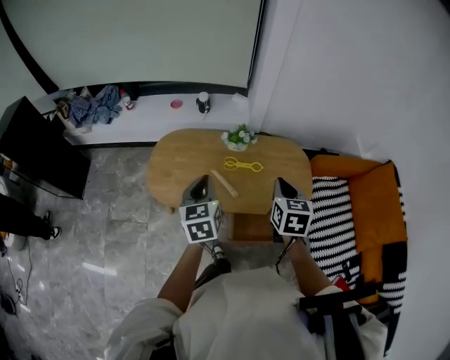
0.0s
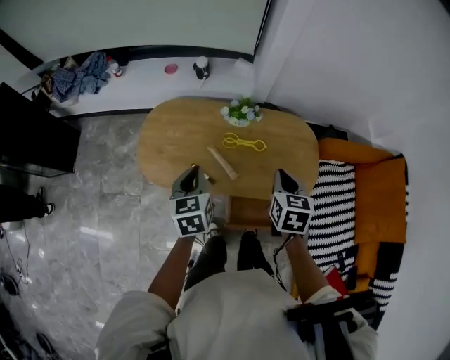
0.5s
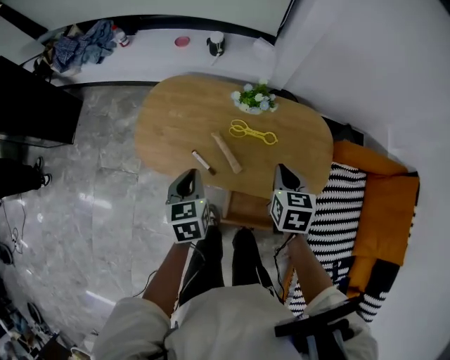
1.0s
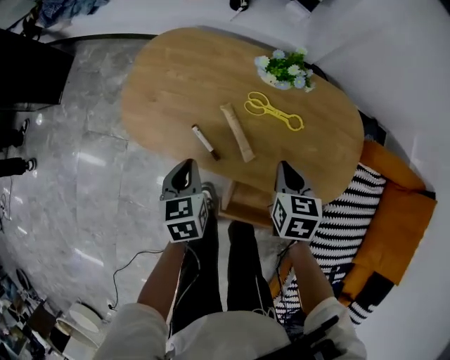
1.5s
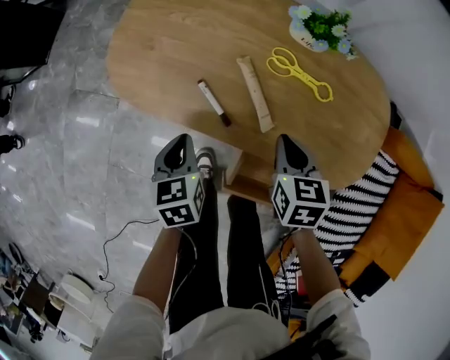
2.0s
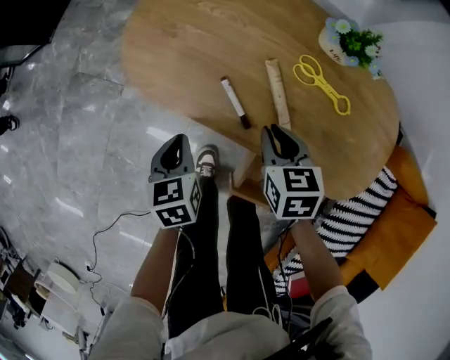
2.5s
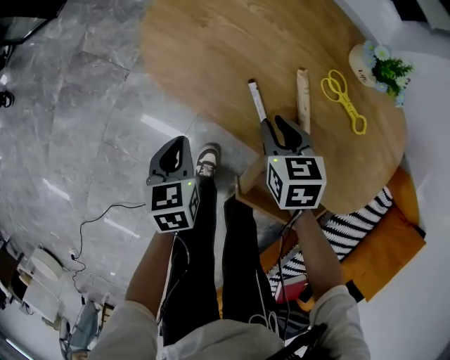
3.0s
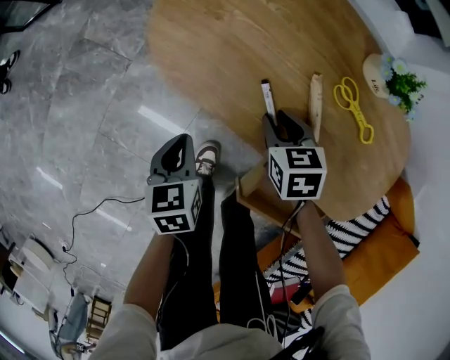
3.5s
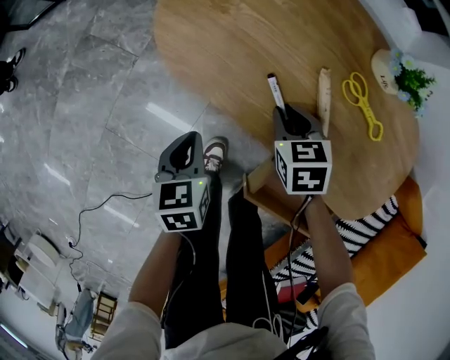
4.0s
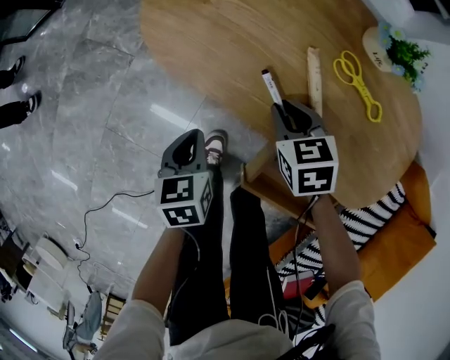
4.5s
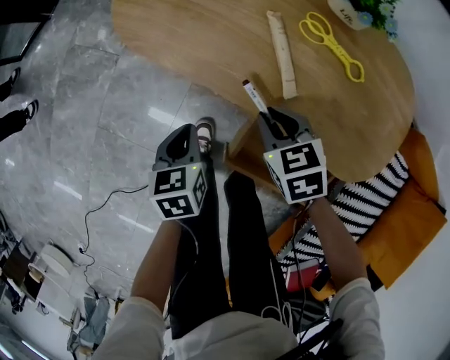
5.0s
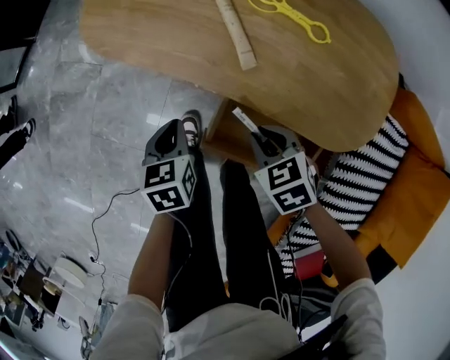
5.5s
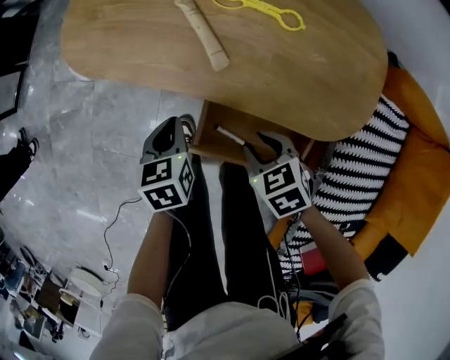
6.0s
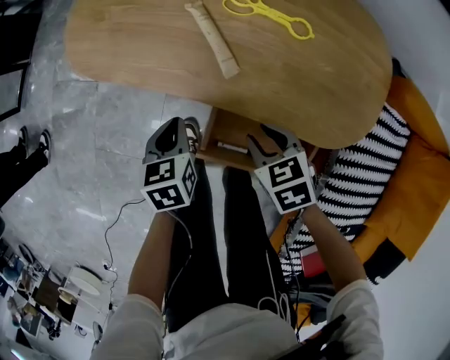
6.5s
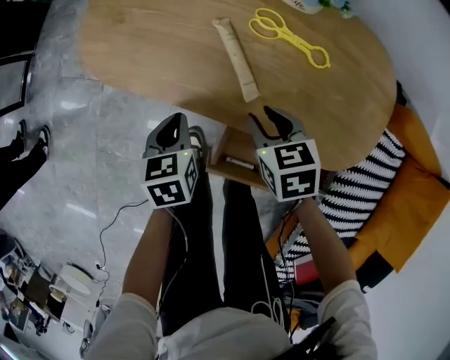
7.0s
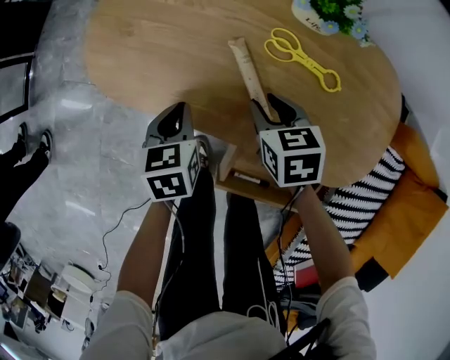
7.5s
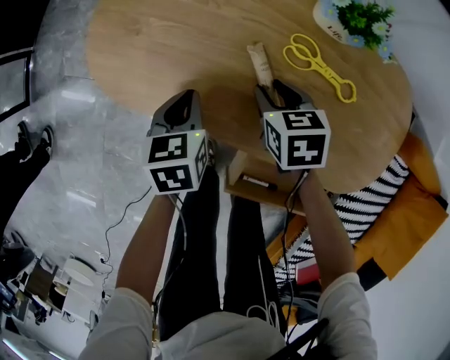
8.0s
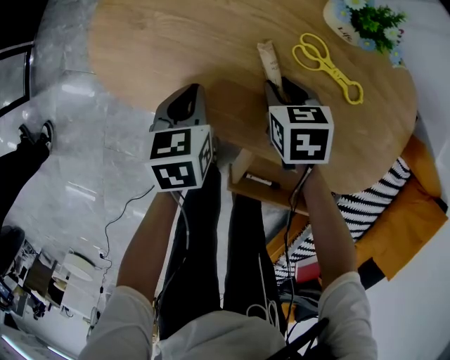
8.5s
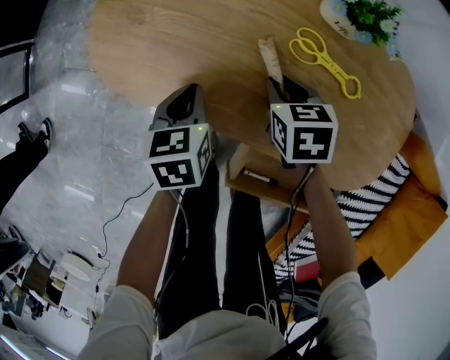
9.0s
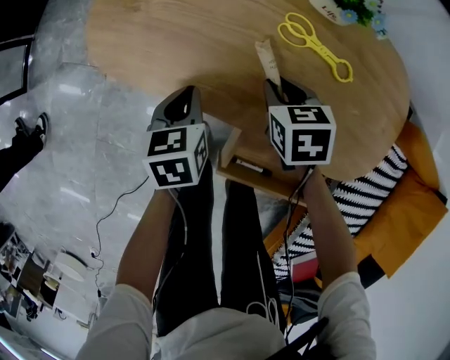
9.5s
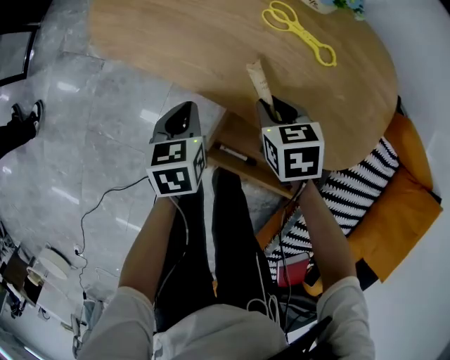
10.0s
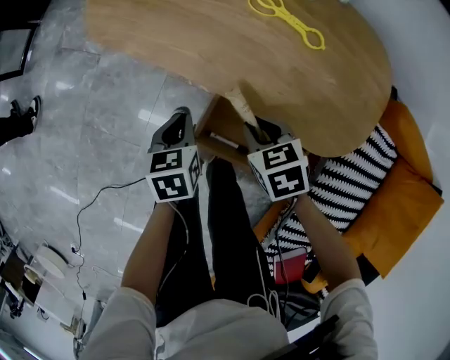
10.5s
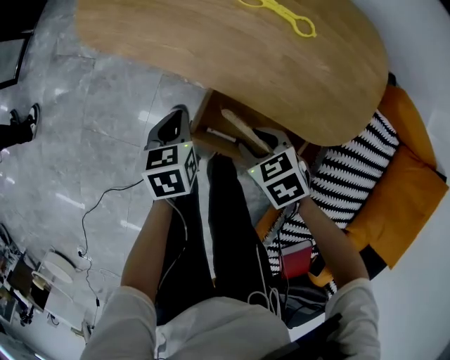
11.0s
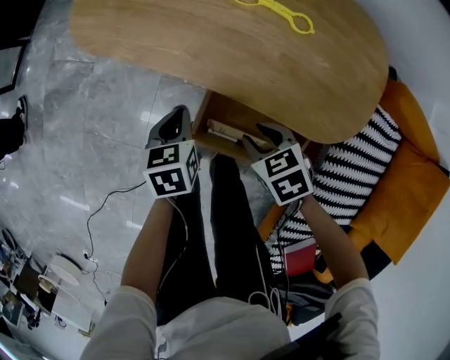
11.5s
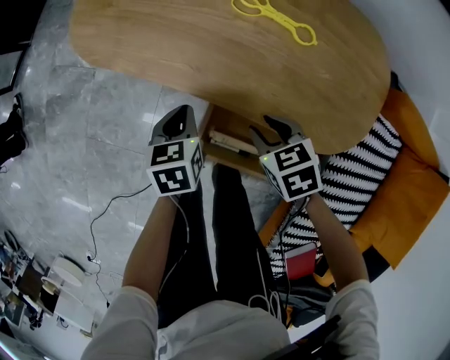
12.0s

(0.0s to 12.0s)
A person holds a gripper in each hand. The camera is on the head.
0.0s - 2.0s: Both grippers move downward, some 40 cm. The left gripper rotates approximately 30 degrees. The right gripper swivels roughly 30 degrees.
2.0s - 4.0s: The right gripper travels to the left, downward and forward by approximately 20 cm, and changes its angle by some 30 degrees; the left gripper goes roughly 15 cm to the left and downward.
4.0s - 6.0s: The right gripper moves backward and to the right, about 30 cm; the left gripper moves to the right and backward, some 20 cm.
6.0s - 8.0s: Both grippers travel together forward, about 25 cm.
8.0s - 10.0s: The grippers both shift backward by some 15 cm.
10.0s - 12.0s: The right gripper travels backward by some 10 cm.

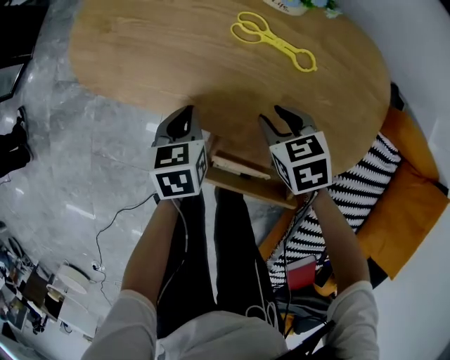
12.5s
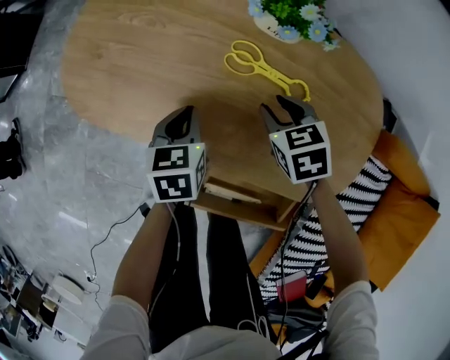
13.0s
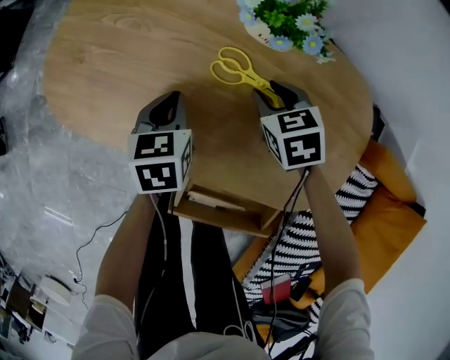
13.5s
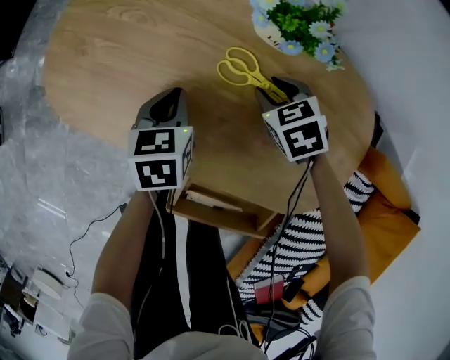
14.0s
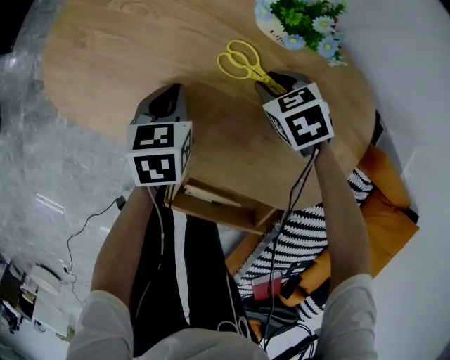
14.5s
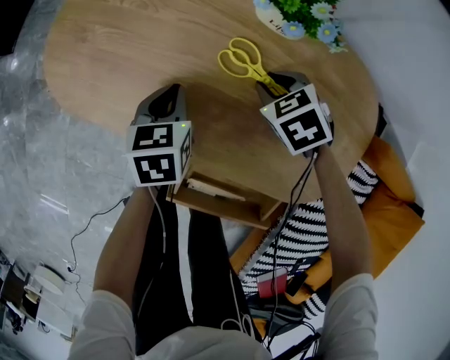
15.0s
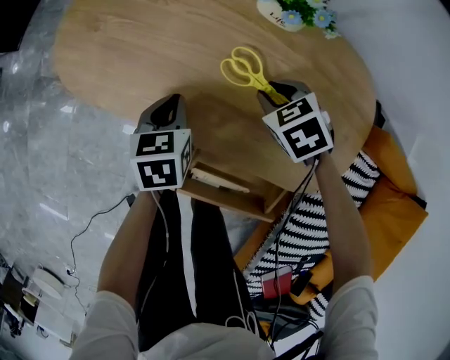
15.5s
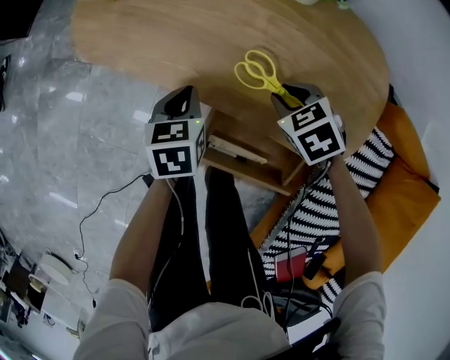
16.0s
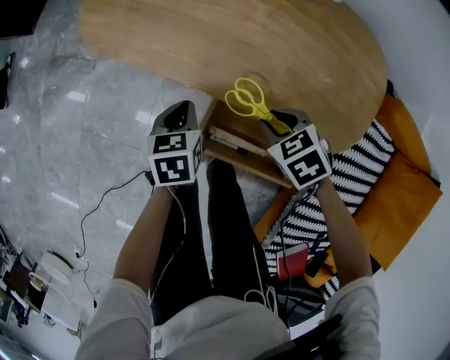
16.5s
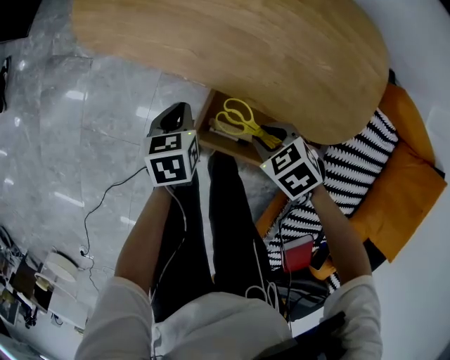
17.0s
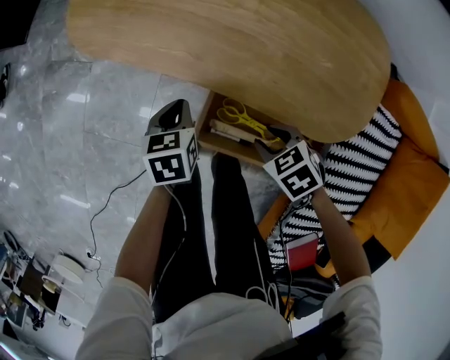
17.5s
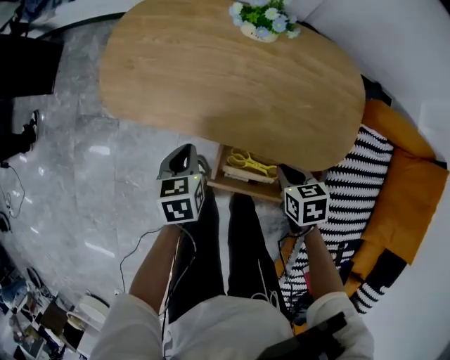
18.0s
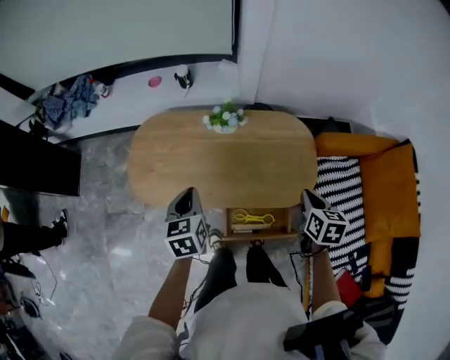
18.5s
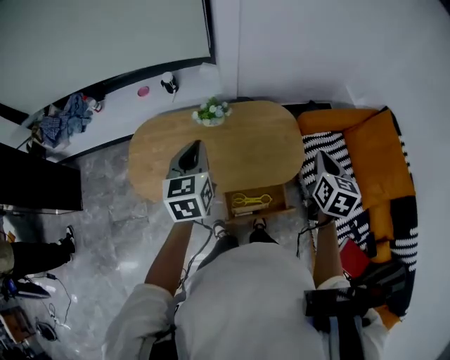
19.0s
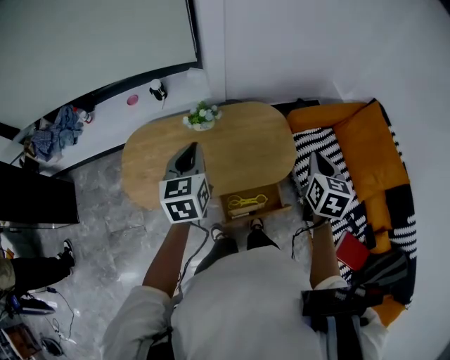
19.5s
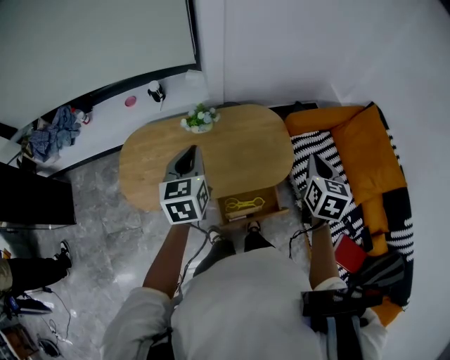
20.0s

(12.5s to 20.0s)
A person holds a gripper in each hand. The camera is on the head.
12.5s - 14.5s: The two grippers go approximately 15 cm forward.
14.5s - 16.5s: The right gripper moves backward, approximately 25 cm; the left gripper is displaced backward and to the left by some 20 cm.
16.5s - 18.0s: The right gripper ends up about 10 cm from where it was, swivels approximately 40 degrees, and closes. Meanwhile the left gripper travels upward by about 10 cm.
18.0s - 20.0s: Both grippers move upward, roughly 40 cm. The right gripper tilts its fingers about 30 degrees upward. The left gripper tilts its fingers roughly 30 degrees upward.

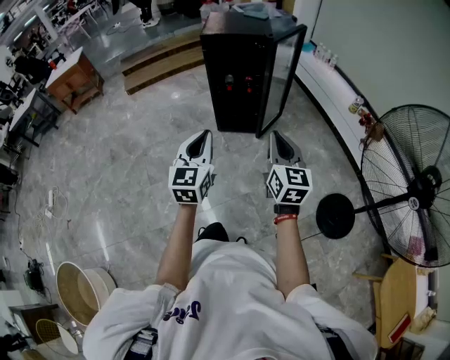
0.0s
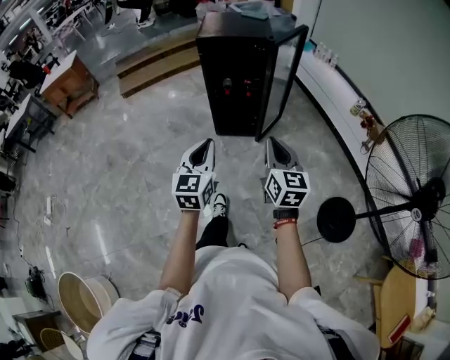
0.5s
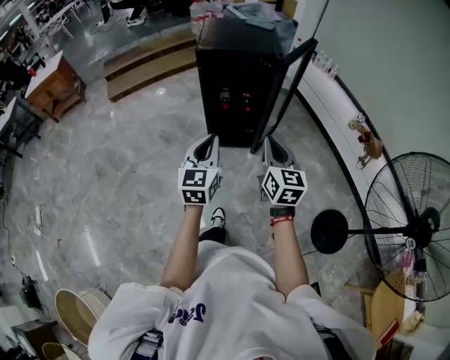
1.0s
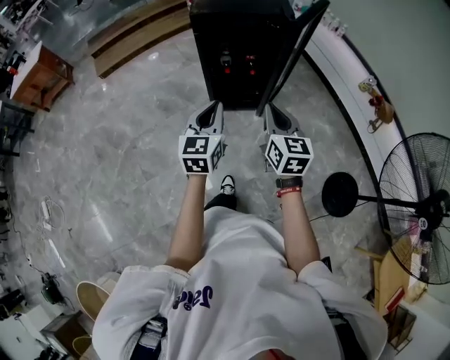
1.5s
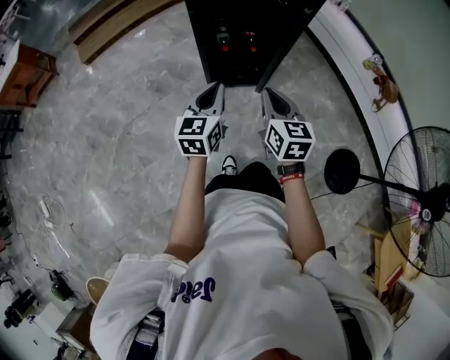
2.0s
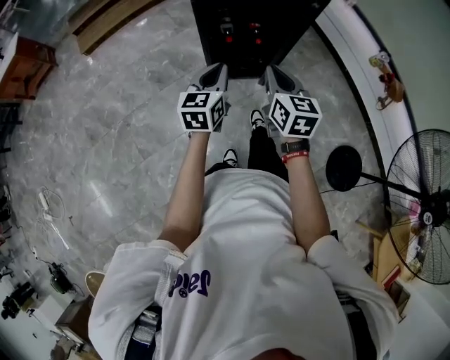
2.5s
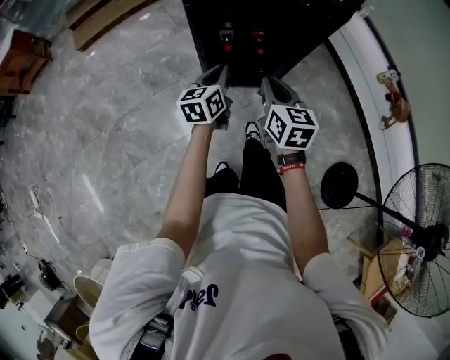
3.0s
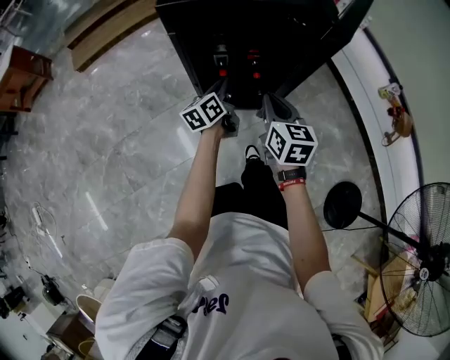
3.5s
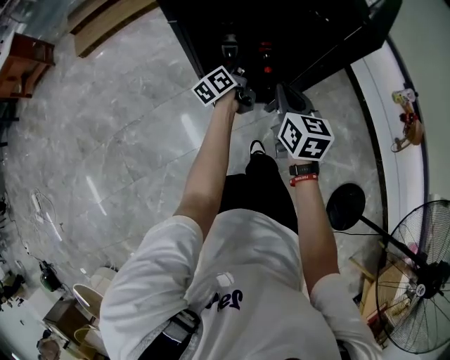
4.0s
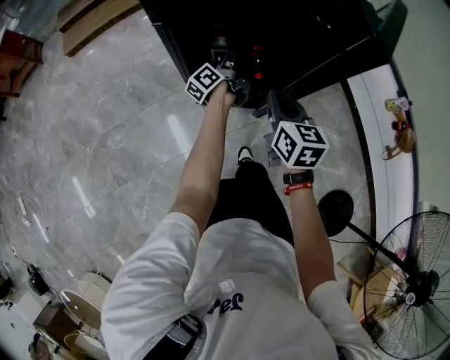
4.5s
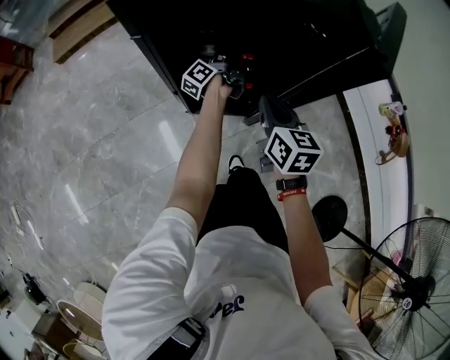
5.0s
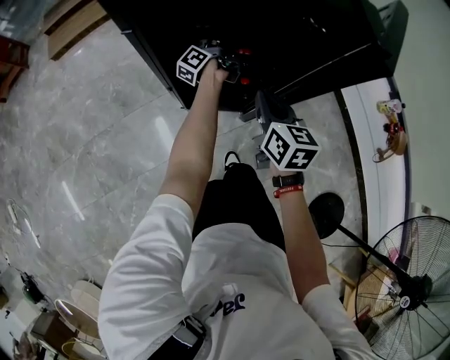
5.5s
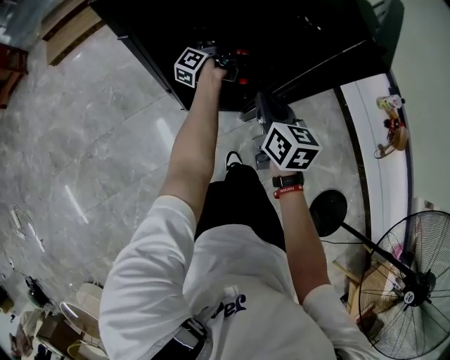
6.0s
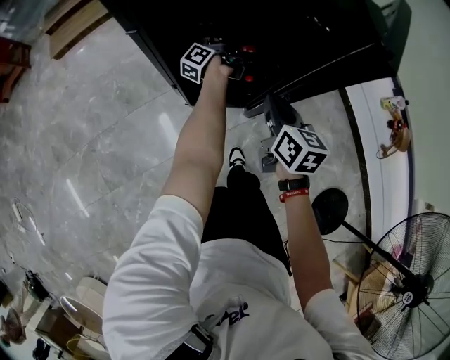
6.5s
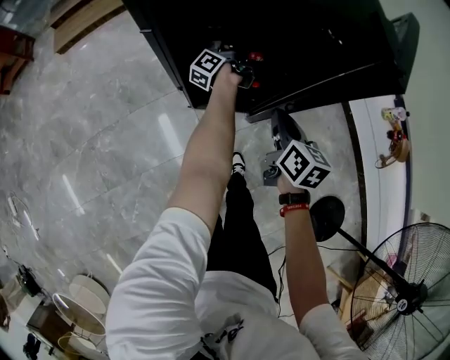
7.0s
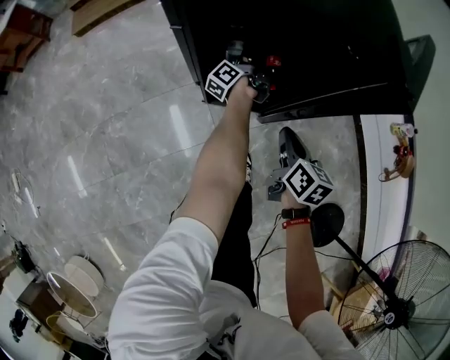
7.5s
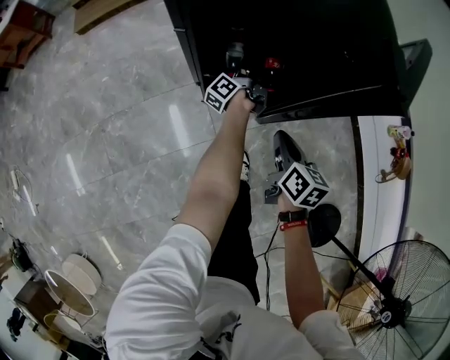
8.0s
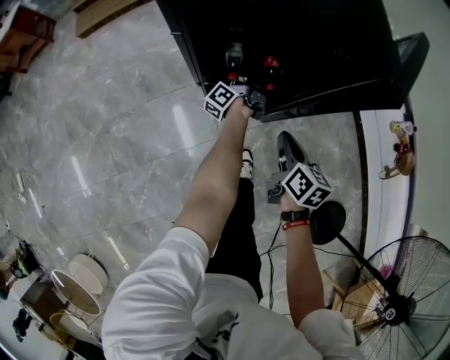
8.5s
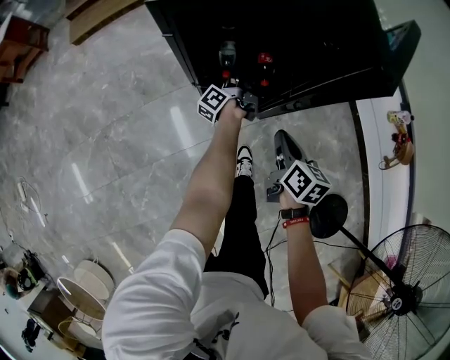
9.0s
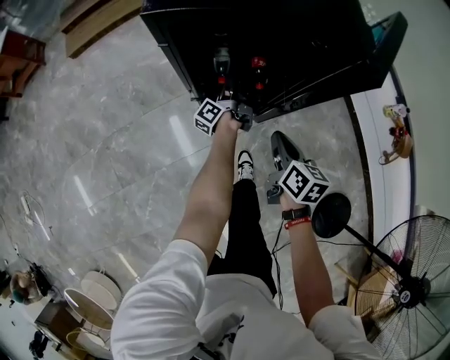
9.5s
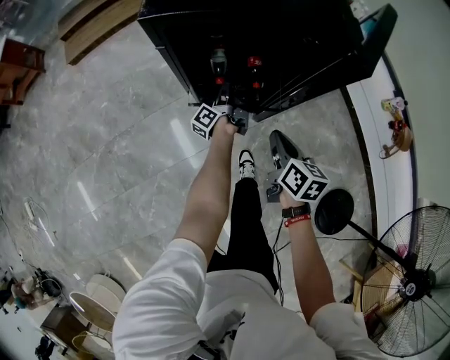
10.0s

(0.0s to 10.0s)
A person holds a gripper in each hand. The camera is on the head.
0.0s - 2.0s: The left gripper moves forward, approximately 40 cm, and changes its angle by some 20 degrees. Meanwhile the right gripper moves forward and to the left, roughly 40 cm.
2.0s - 4.0s: The grippers both shift forward and downward by approximately 40 cm. The left gripper twists some 50 degrees counterclockwise, seen from behind, and opens its fingers.
4.0s - 6.0s: The left gripper goes some 15 cm forward, changes its angle by about 40 degrees, and closes up; the right gripper heads downward and forward, covering roughly 10 cm.
6.0s - 8.0s: The grippers both shift backward by about 10 cm.
8.0s - 10.0s: The left gripper goes roughly 10 cm backward. Meanwhile the right gripper changes place by roughly 5 cm.
